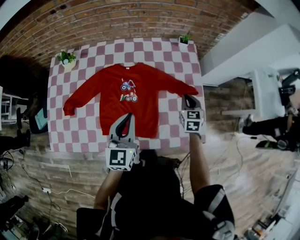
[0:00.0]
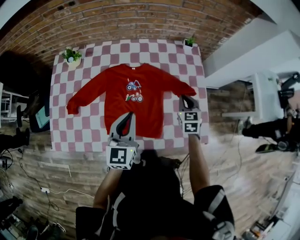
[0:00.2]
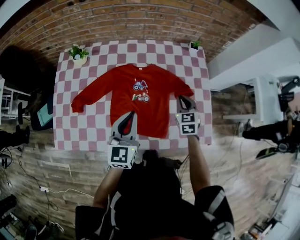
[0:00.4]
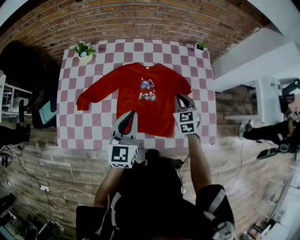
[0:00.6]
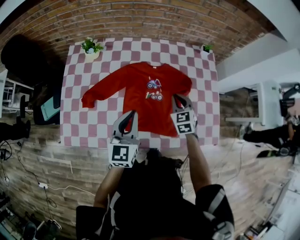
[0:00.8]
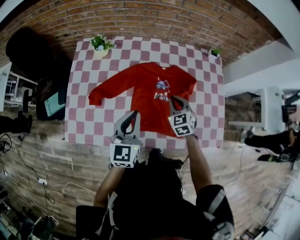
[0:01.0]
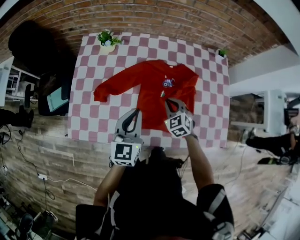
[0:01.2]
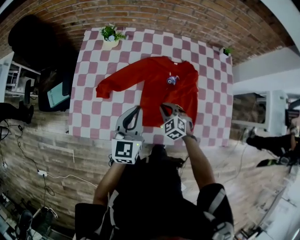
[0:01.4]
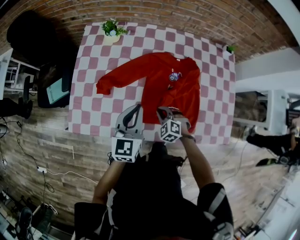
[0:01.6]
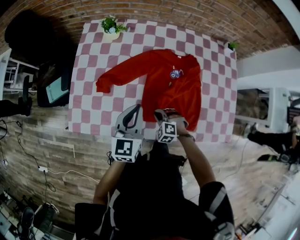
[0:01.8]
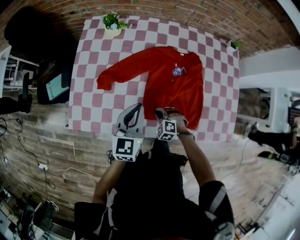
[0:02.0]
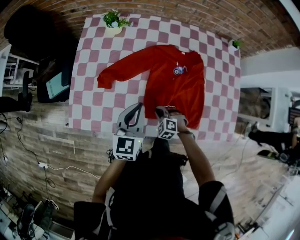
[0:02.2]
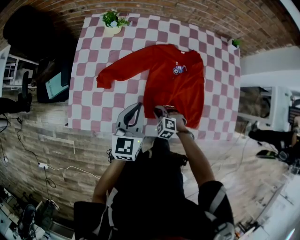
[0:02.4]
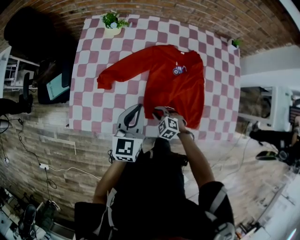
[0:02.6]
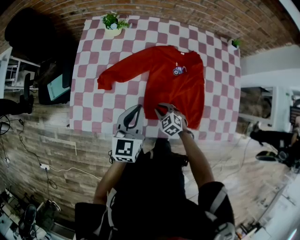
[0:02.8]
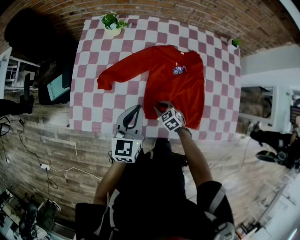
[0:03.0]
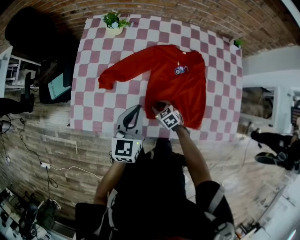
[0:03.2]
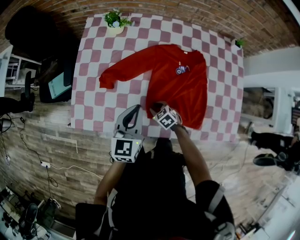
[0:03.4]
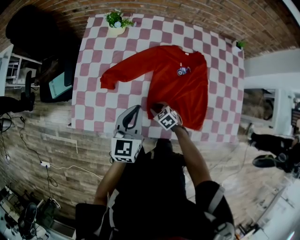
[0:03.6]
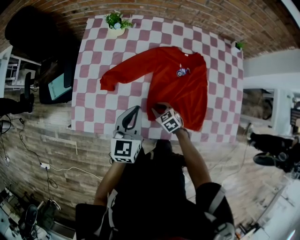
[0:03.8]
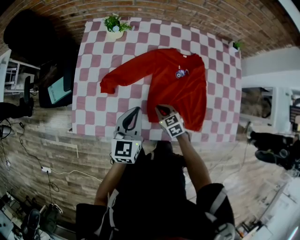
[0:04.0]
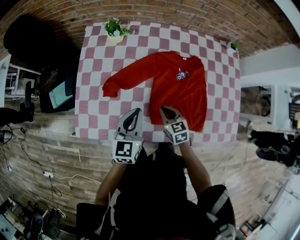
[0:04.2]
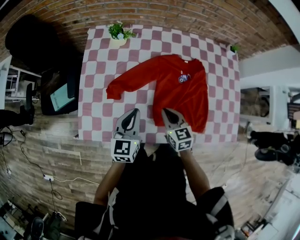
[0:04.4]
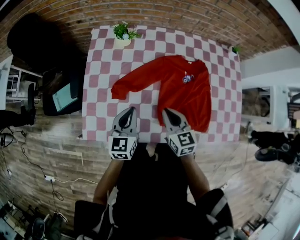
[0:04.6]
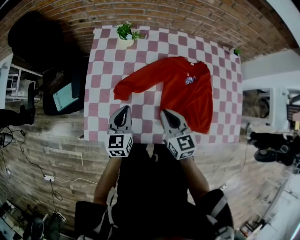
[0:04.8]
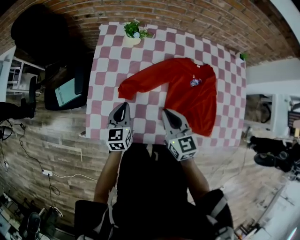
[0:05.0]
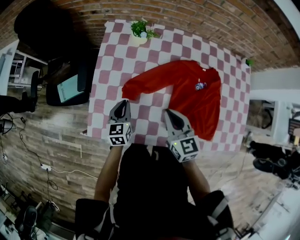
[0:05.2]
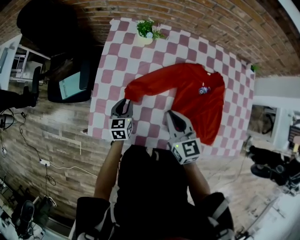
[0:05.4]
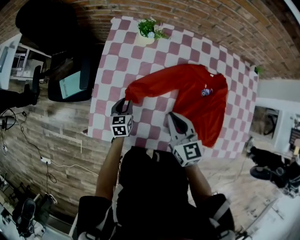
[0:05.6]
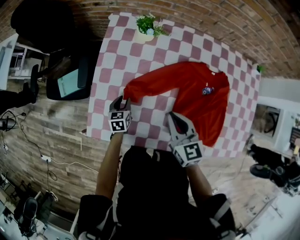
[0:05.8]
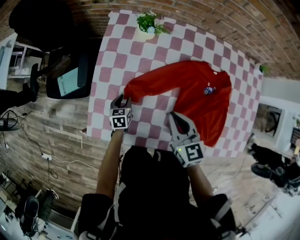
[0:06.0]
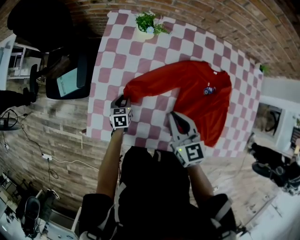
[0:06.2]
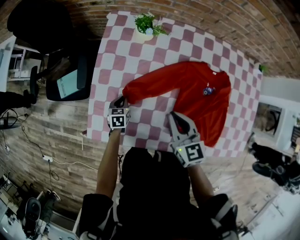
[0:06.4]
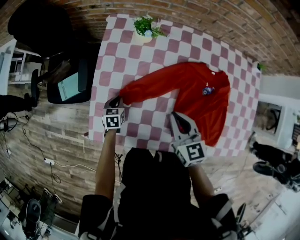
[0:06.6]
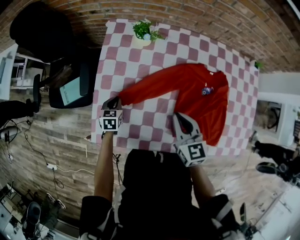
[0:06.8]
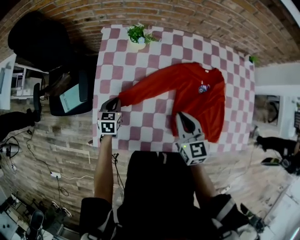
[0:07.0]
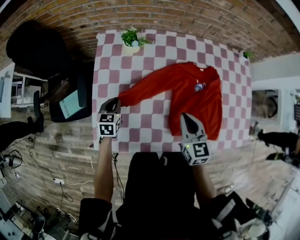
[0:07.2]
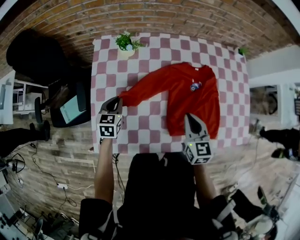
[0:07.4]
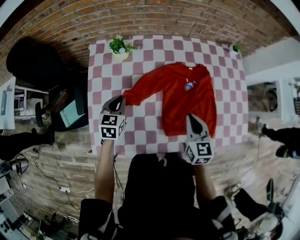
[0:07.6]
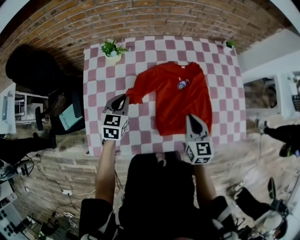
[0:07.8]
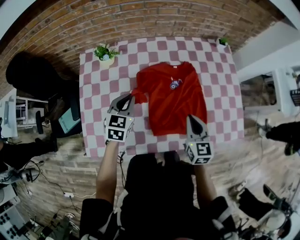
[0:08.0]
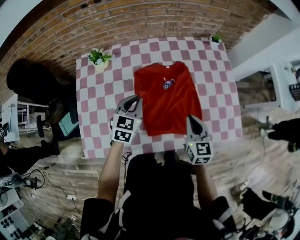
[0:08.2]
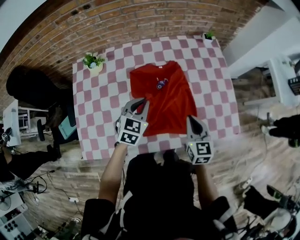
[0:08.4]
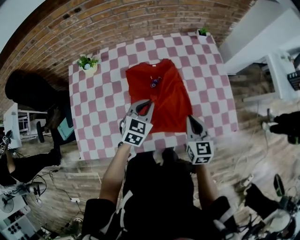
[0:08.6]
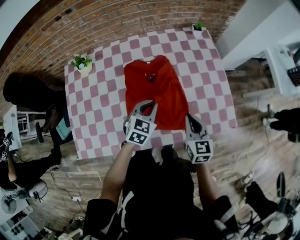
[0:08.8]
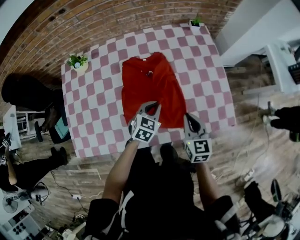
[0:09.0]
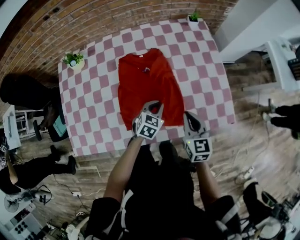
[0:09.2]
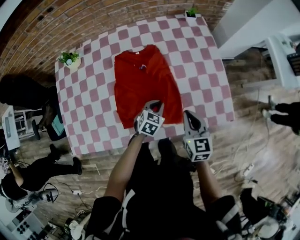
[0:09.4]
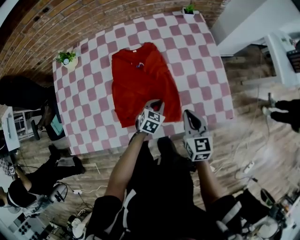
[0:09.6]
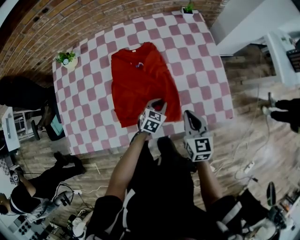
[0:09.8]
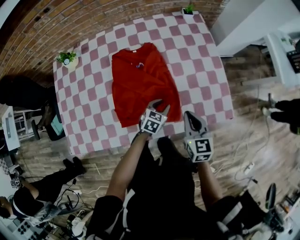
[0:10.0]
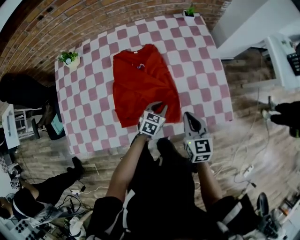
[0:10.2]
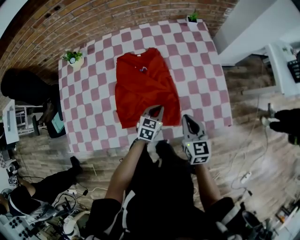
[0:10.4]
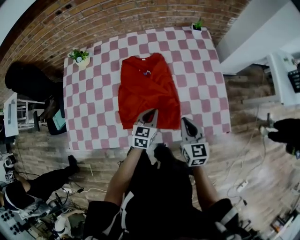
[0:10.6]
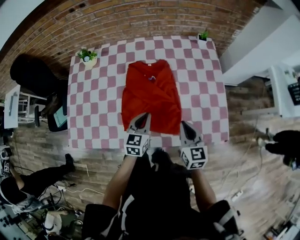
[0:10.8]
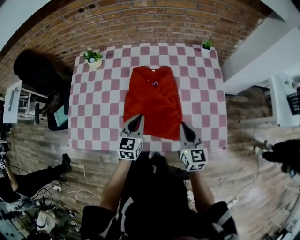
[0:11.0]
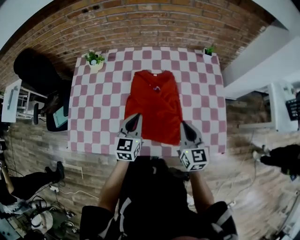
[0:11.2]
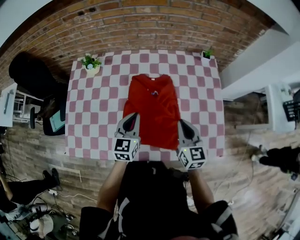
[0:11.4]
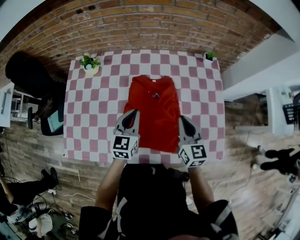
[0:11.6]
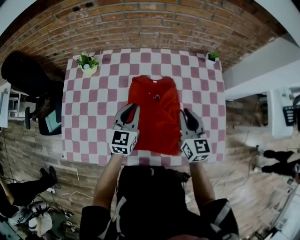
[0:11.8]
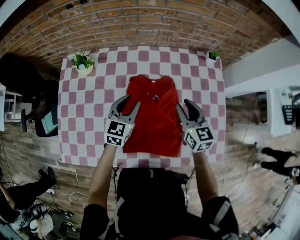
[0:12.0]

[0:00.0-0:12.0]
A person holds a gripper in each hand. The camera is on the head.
0:00.0 to 0:01.6: The right gripper travels to the left by roughly 40 cm, and rotates around the line of its fingers by about 50 degrees, counterclockwise from behind, while the left gripper moves to the left, approximately 25 cm.
0:01.6 to 0:03.0: The right gripper is displaced downward by some 5 cm, and turns by some 30 degrees.
0:03.0 to 0:04.4: The right gripper heads upward, covering approximately 15 cm, and changes its angle by approximately 30 degrees; the left gripper travels to the left by roughly 5 cm.
0:04.4 to 0:06.0: The left gripper travels downward, to the left and forward by about 30 cm, tips its fingers downward by some 30 degrees, and opens, while the right gripper is displaced to the left, forward and upward by roughly 15 cm.
0:06.0 to 0:07.6: The right gripper heads to the right, covering about 15 cm, and rotates roughly 30 degrees. Meanwhile the left gripper shifts some 20 cm upward, changes its angle by some 30 degrees, and closes its fingers.
0:07.6 to 0:09.0: The right gripper is displaced to the right by roughly 25 cm, while the left gripper goes approximately 40 cm to the right, and rotates approximately 30 degrees.
0:09.0 to 0:10.4: The left gripper goes approximately 10 cm downward and to the right, and opens and closes again.
0:10.4 to 0:12.0: The right gripper travels forward by some 25 cm, and opens. Meanwhile the left gripper heads to the left, forward and upward, covering about 30 cm, rotates some 20 degrees, and opens its fingers.

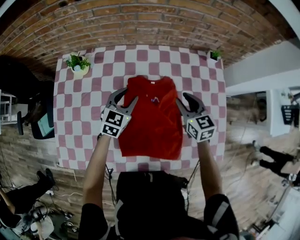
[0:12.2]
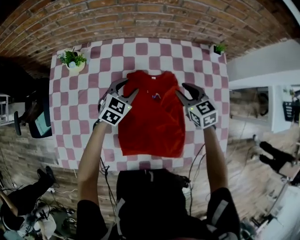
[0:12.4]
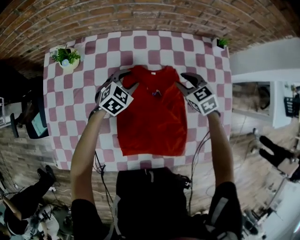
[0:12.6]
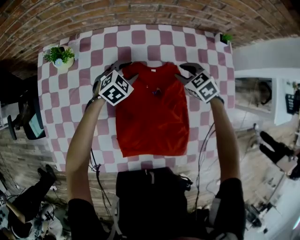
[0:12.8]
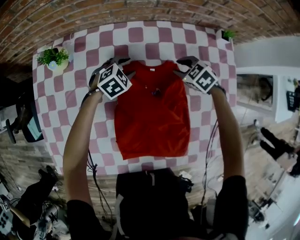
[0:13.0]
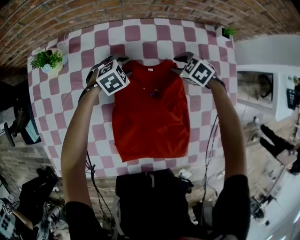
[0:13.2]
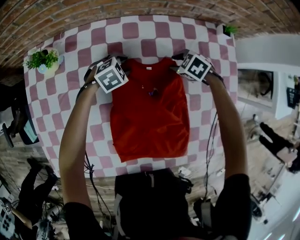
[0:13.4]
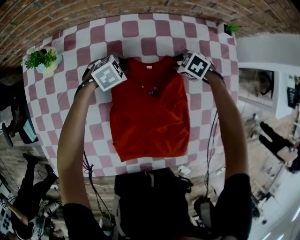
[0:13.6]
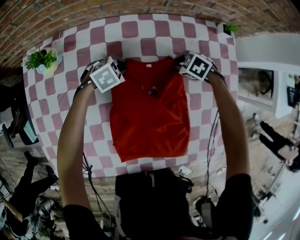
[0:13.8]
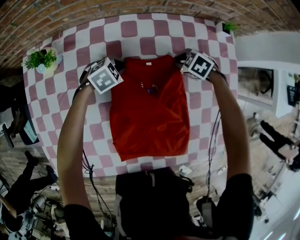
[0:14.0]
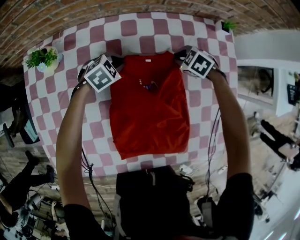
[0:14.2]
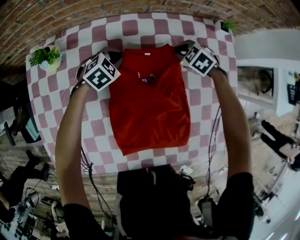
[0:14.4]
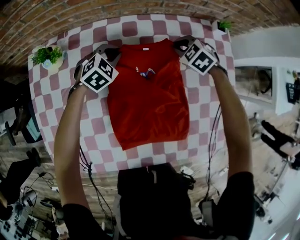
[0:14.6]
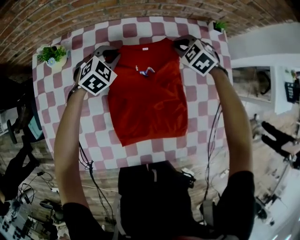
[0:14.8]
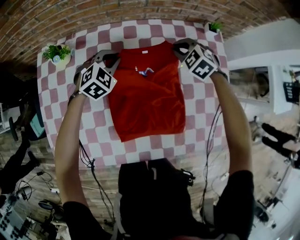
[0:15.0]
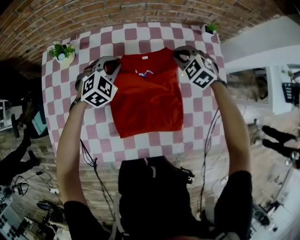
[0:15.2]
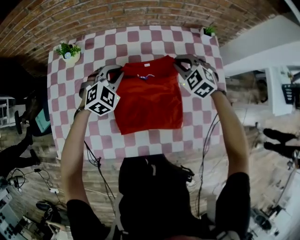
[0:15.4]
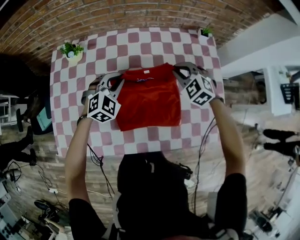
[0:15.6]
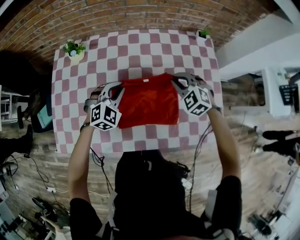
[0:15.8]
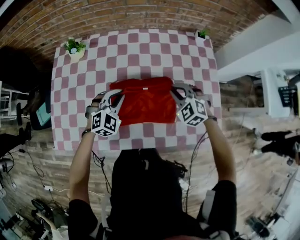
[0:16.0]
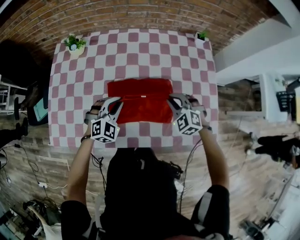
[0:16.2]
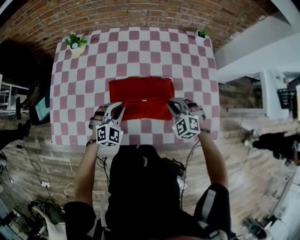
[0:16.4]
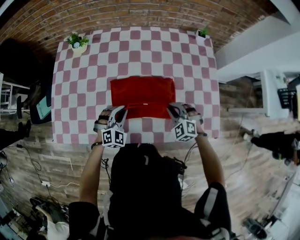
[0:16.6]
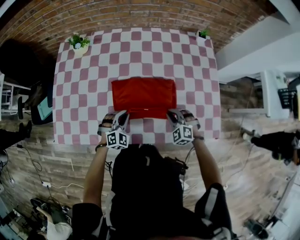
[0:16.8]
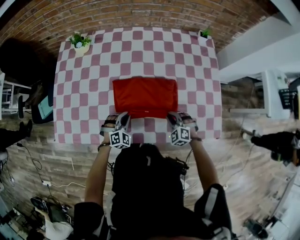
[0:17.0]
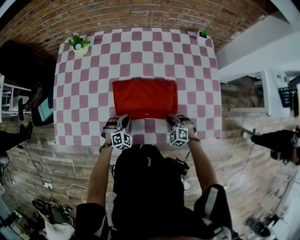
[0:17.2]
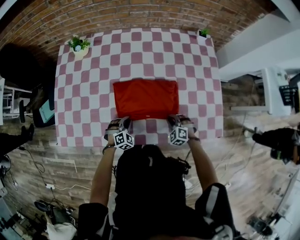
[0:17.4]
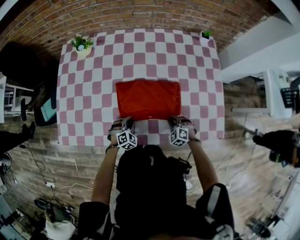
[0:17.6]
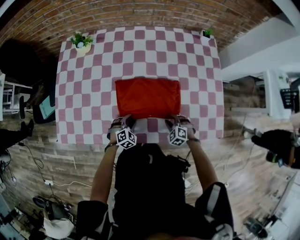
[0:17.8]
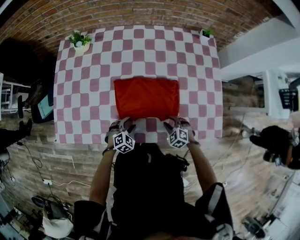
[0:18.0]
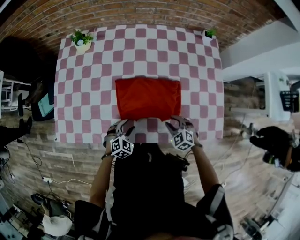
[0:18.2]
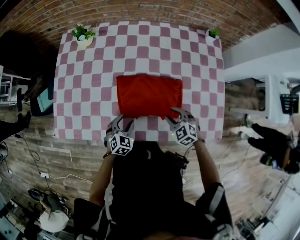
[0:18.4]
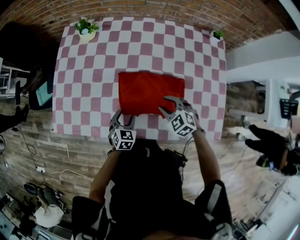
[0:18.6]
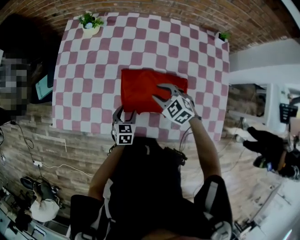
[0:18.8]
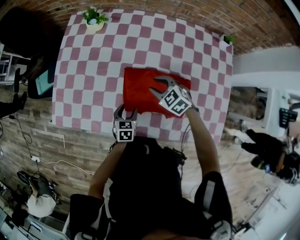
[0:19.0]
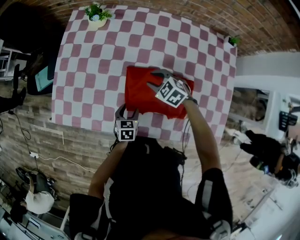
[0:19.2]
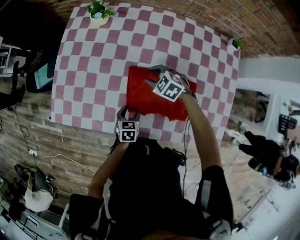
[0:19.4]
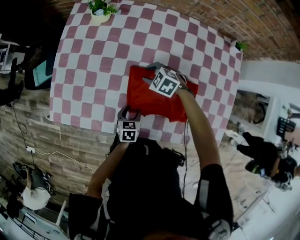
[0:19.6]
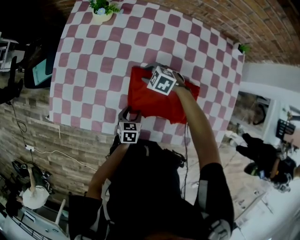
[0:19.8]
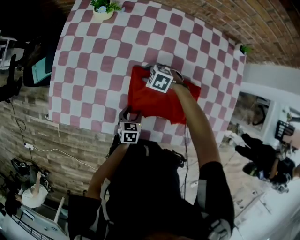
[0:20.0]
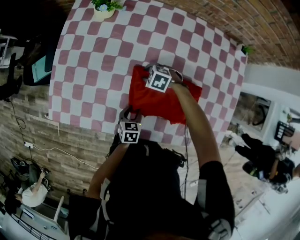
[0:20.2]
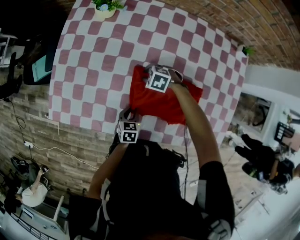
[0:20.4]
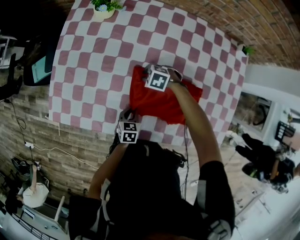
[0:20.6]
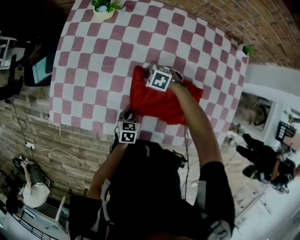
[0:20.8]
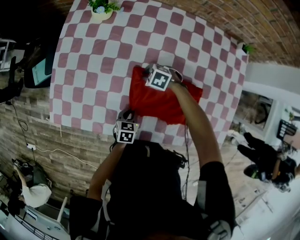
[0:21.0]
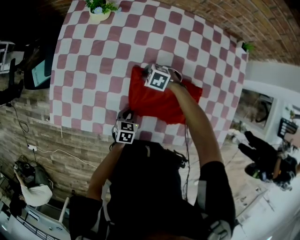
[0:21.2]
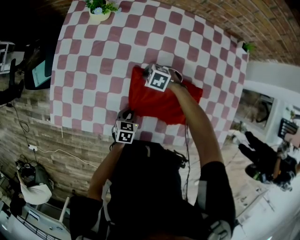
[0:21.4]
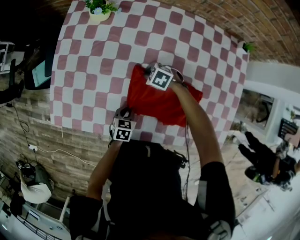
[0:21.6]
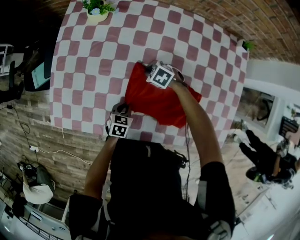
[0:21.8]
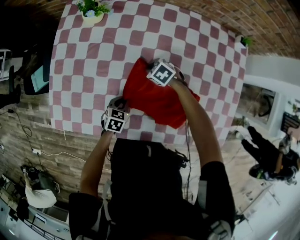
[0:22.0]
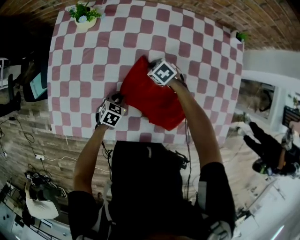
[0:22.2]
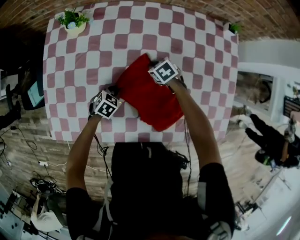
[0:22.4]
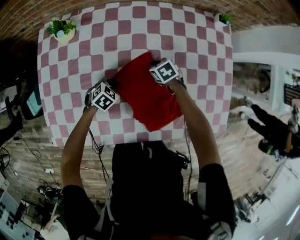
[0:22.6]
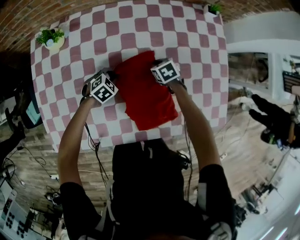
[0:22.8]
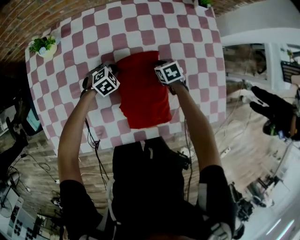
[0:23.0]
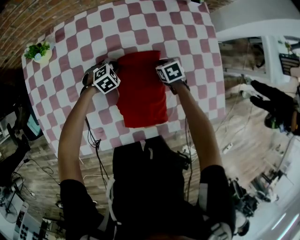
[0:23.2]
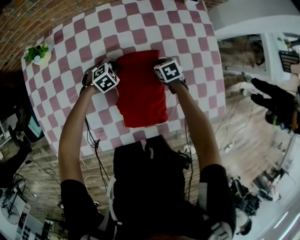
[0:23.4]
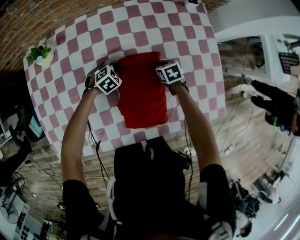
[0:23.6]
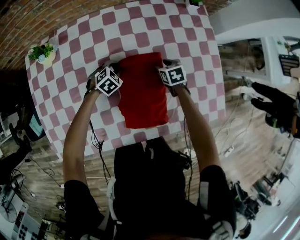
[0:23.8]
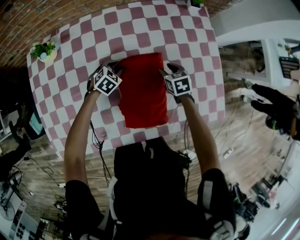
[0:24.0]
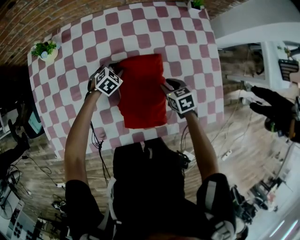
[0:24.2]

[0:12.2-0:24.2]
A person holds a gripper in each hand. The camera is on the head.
0:12.2 to 0:13.8: Both grippers travel together downward, about 20 cm. The right gripper angles its fingers downward, by some 50 degrees. The left gripper angles its fingers downward, by approximately 30 degrees, and closes up.
0:13.8 to 0:15.2: Both grippers move upward, roughly 20 cm. The left gripper swivels some 30 degrees, while the right gripper turns by about 30 degrees.
0:15.2 to 0:16.6: Both grippers move backward, some 30 cm.
0:16.6 to 0:18.2: The two grippers go roughly 10 cm downward and backward. The left gripper rotates approximately 20 degrees, and opens up, while the right gripper opens.
0:18.2 to 0:19.8: The left gripper ends up about 10 cm from where it was, and twists some 60 degrees counterclockwise, seen from behind. Meanwhile the right gripper travels upward and back again, some 10 cm each way, and turns by about 30 degrees.
0:19.8 to 0:21.2: The left gripper closes its fingers.
0:21.2 to 0:22.6: The left gripper moves approximately 15 cm, and rolls clockwise, seen from behind, by about 40 degrees. Meanwhile the right gripper changes place by approximately 20 cm, and rolls clockwise, seen from behind, by some 40 degrees.
0:22.6 to 0:24.2: The left gripper shifts some 15 cm forward and to the right; the right gripper heads to the right, backward and upward, covering approximately 20 cm, rotates about 20 degrees, and opens its fingers.
